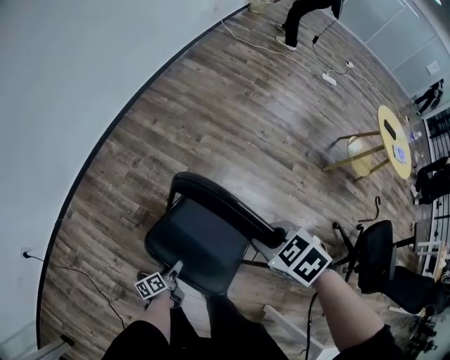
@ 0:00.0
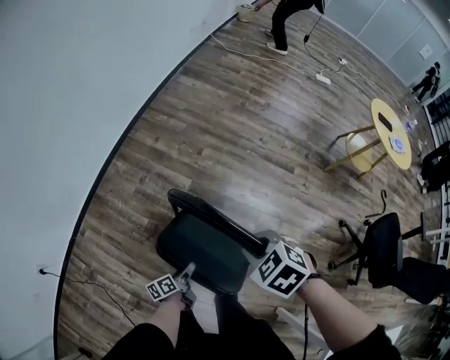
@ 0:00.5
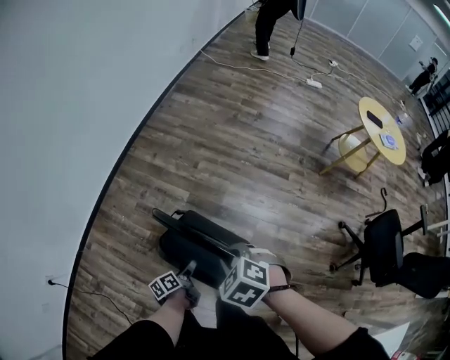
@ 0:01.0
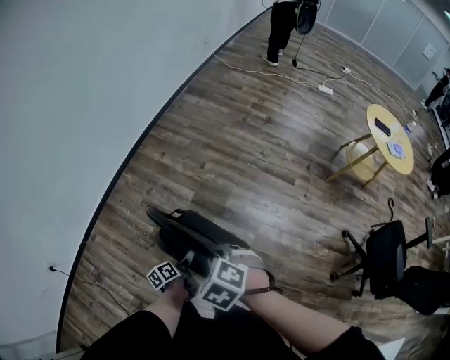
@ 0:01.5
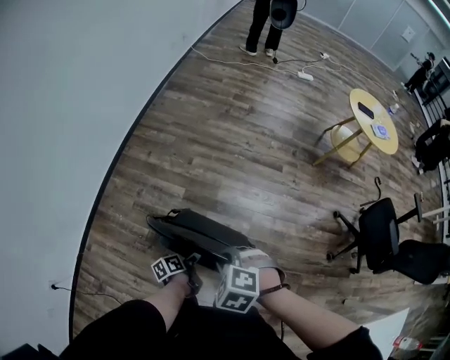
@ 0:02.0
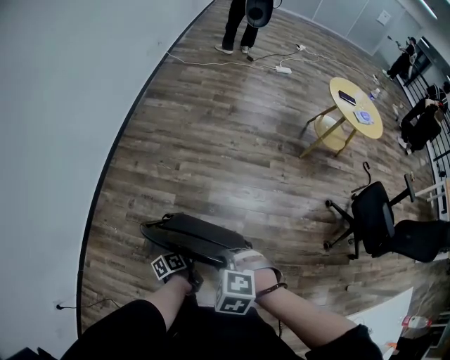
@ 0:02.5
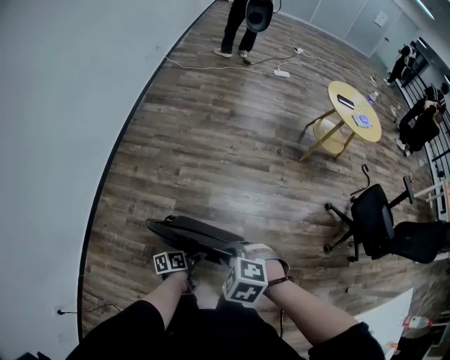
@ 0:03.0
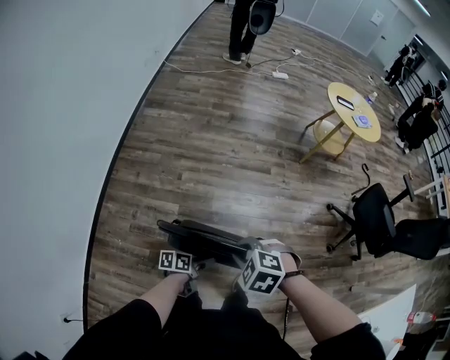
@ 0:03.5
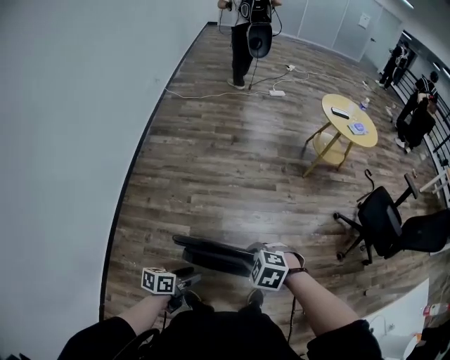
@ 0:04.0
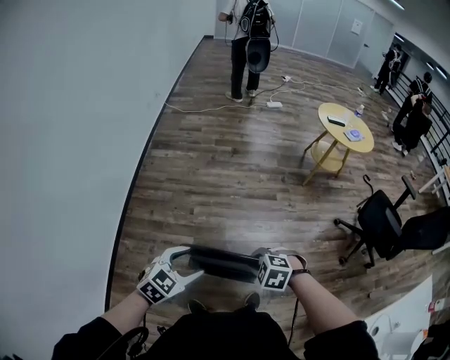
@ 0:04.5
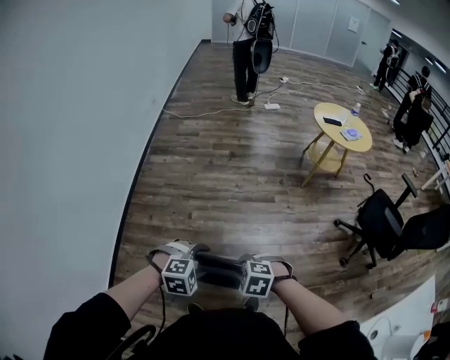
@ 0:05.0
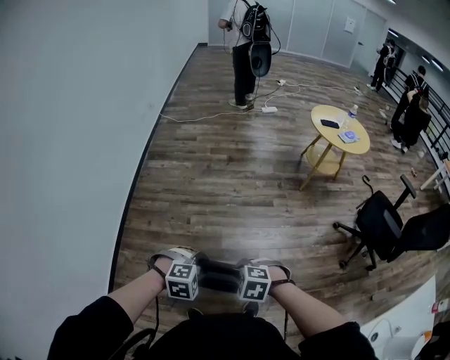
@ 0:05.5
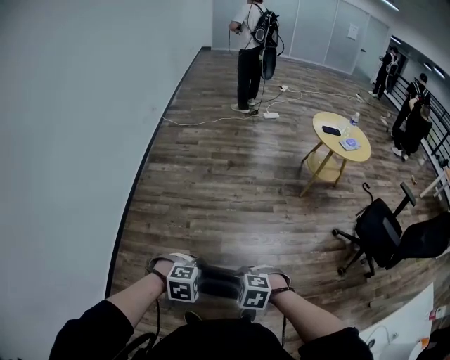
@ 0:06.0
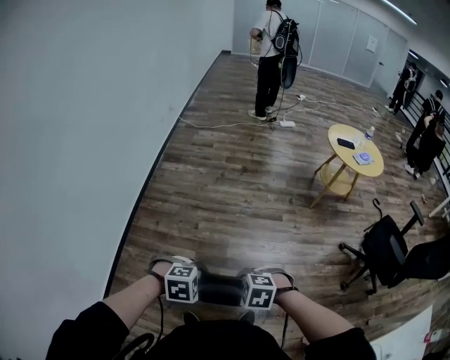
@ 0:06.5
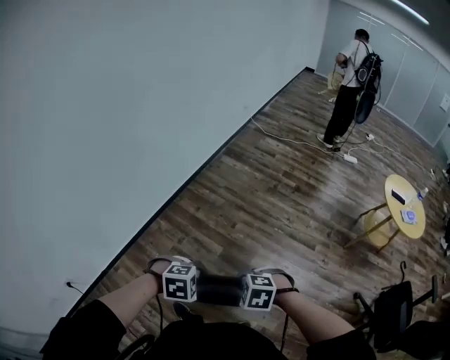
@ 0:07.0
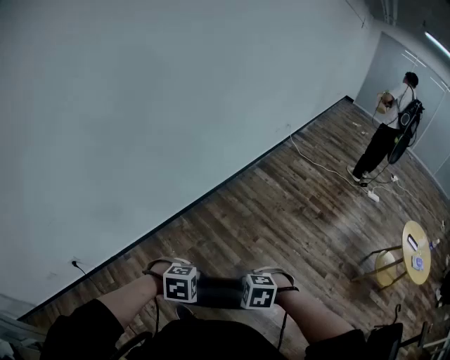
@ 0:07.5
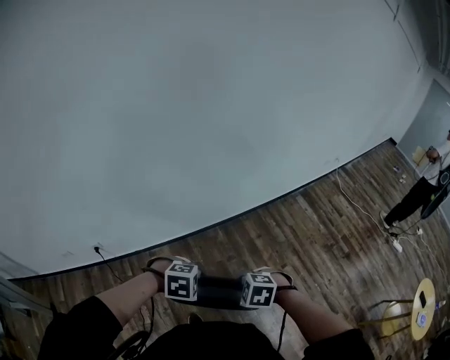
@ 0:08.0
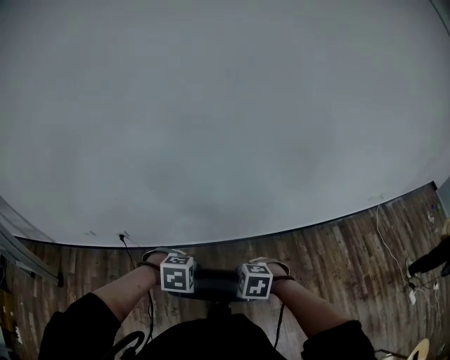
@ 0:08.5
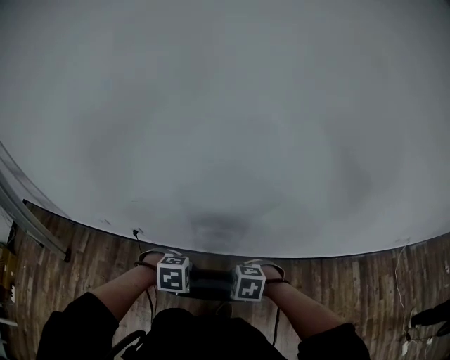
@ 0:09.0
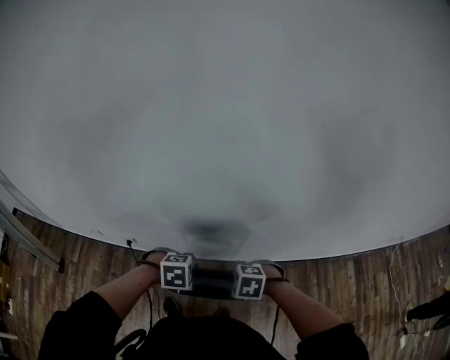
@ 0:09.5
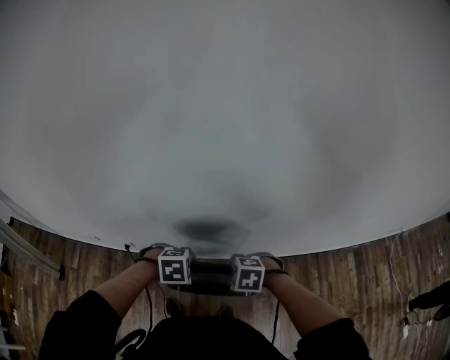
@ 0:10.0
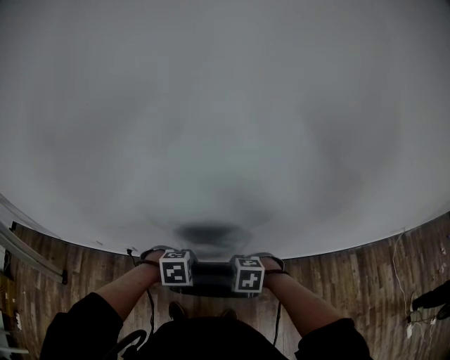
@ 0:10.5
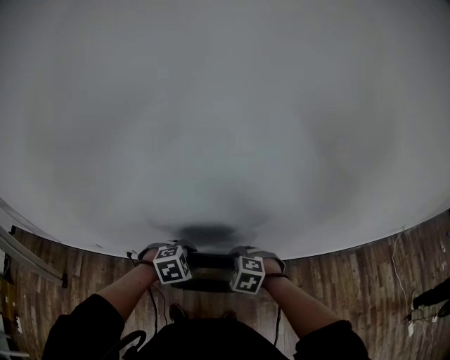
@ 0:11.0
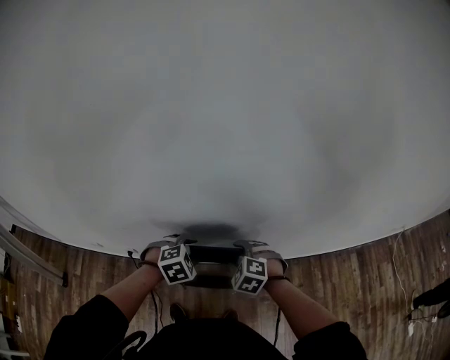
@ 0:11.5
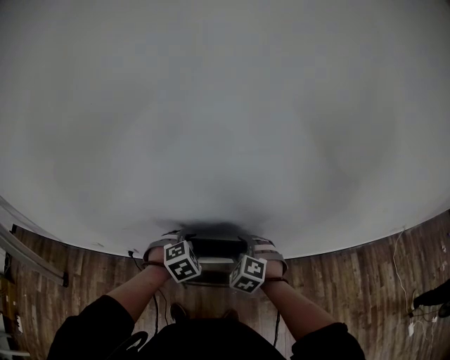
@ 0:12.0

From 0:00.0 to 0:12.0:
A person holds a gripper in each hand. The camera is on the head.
From 0:00.0 to 0:02.0: The right gripper moves backward and to the left, about 10 cm, while the left gripper moves upward, to the right and forward, roughly 20 cm.
From 0:02.0 to 0:04.0: The right gripper is displaced forward by roughly 10 cm, while the left gripper moves upward and to the left, about 15 cm, and rotates around the line of its fingers by approximately 50 degrees, clockwise from behind.
From 0:04.0 to 0:06.0: The left gripper goes roughly 10 cm upward, and twists roughly 90 degrees clockwise, seen from behind.
From 0:06.0 to 0:08.0: The right gripper changes place by roughly 40 cm, and rolls counterclockwise, seen from behind, by some 60 degrees, while the left gripper moves about 40 cm, and rotates around the line of its fingers by some 60 degrees, counterclockwise from behind.
From 0:08.0 to 0:10.0: The left gripper changes place by approximately 35 cm, and rotates approximately 30 degrees, while the right gripper ends up approximately 35 cm from where it was, and changes its angle by approximately 30 degrees.
From 0:10.0 to 0:12.0: The right gripper moves about 10 cm, turns by approximately 40 degrees, and opens its fingers; the left gripper shifts by about 10 cm, and swivels some 30 degrees.

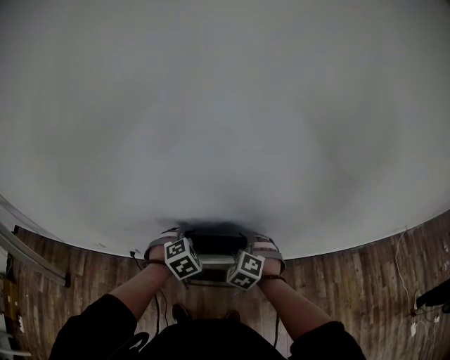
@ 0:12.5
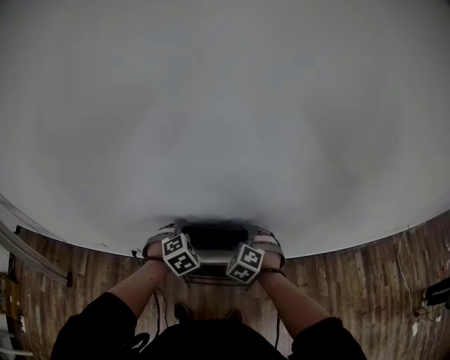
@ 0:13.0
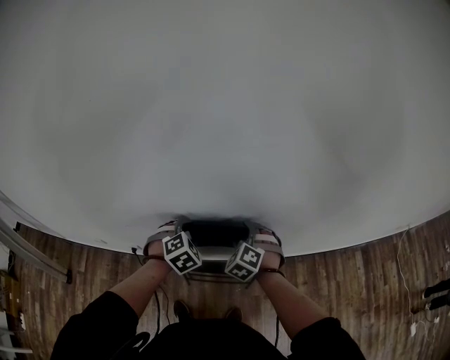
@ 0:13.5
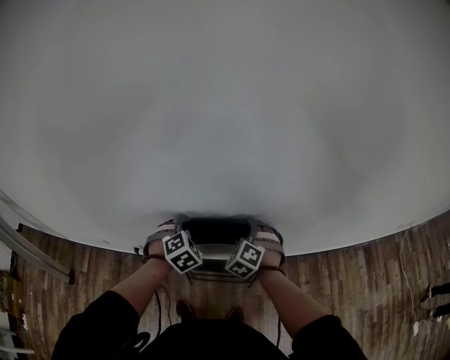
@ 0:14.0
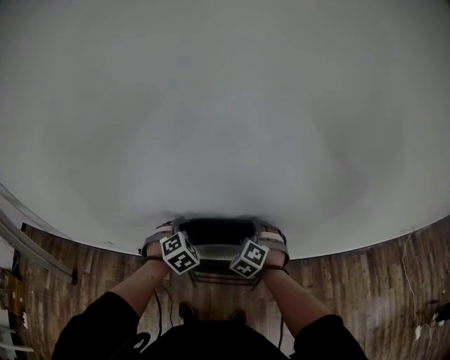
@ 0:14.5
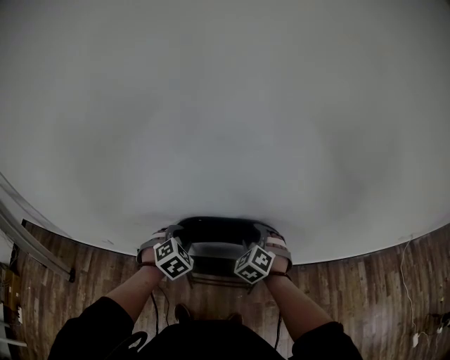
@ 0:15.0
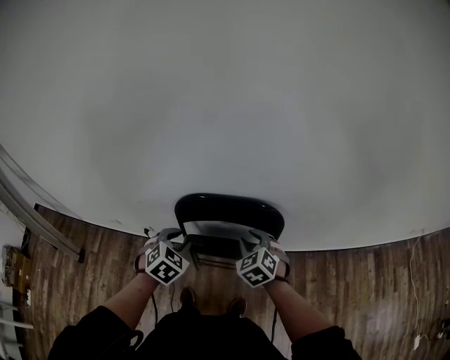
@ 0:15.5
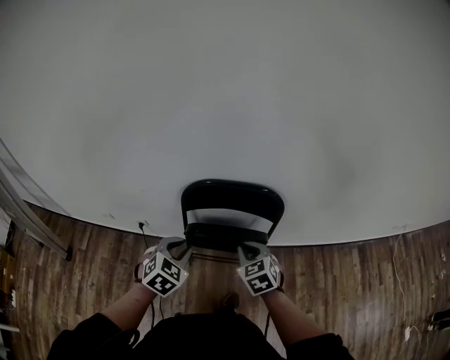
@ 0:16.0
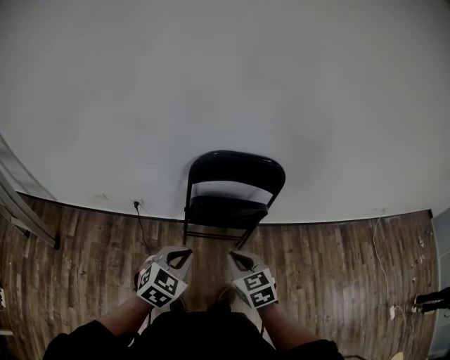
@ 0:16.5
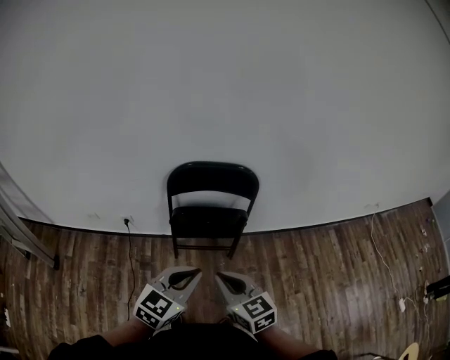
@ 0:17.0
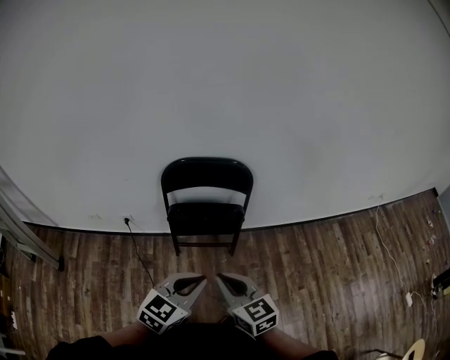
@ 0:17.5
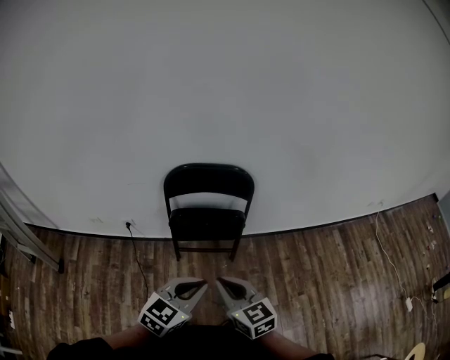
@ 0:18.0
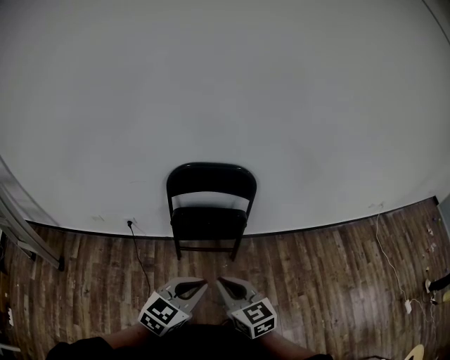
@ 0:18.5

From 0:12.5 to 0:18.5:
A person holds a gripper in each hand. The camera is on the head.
From 0:12.5 to 0:14.5: The left gripper changes place by some 5 cm.
From 0:14.5 to 0:16.5: Both grippers travel together backward, about 35 cm. The right gripper rolls clockwise, seen from behind, by approximately 40 degrees, and closes up. Meanwhile the left gripper swivels roughly 30 degrees.
From 0:16.5 to 0:18.5: The right gripper moves backward, to the right and upward, some 15 cm, and turns by approximately 20 degrees. The left gripper travels to the right, backward and upward by some 20 cm.

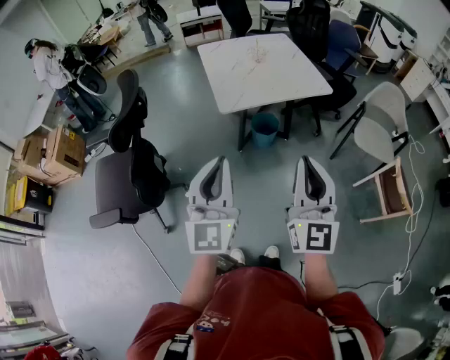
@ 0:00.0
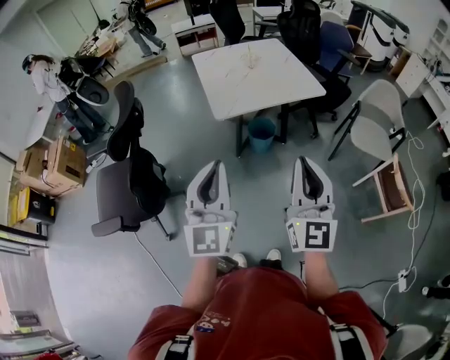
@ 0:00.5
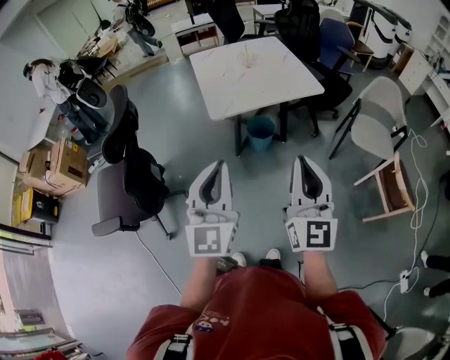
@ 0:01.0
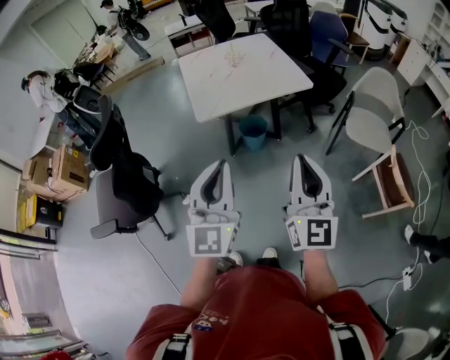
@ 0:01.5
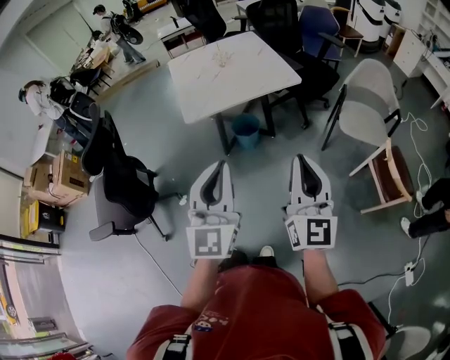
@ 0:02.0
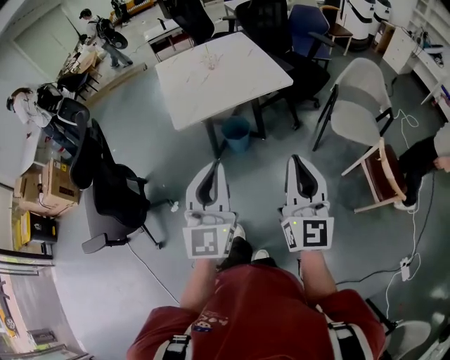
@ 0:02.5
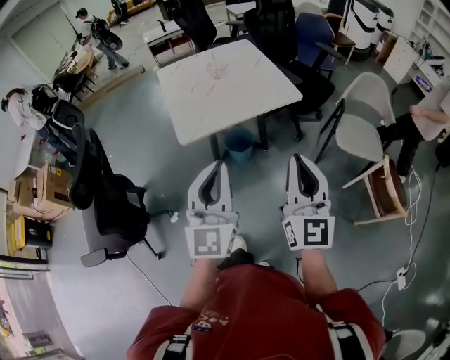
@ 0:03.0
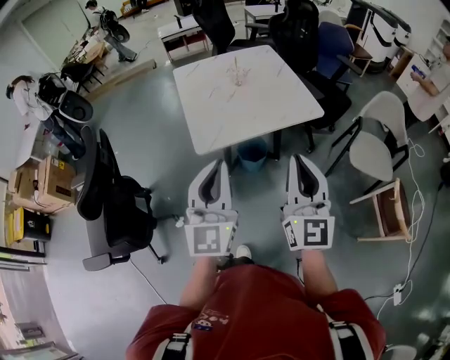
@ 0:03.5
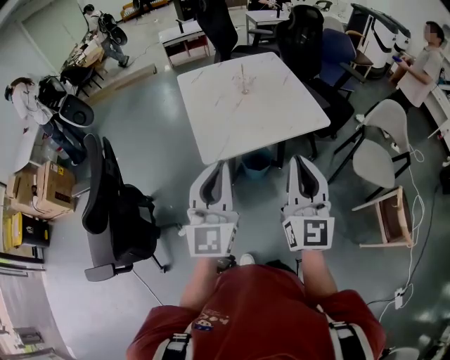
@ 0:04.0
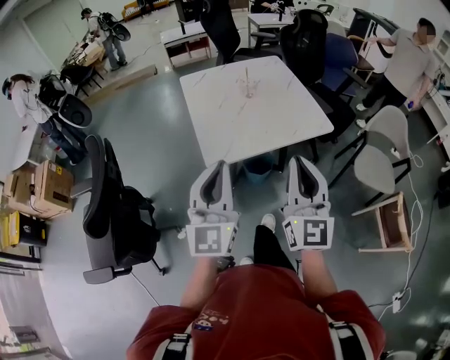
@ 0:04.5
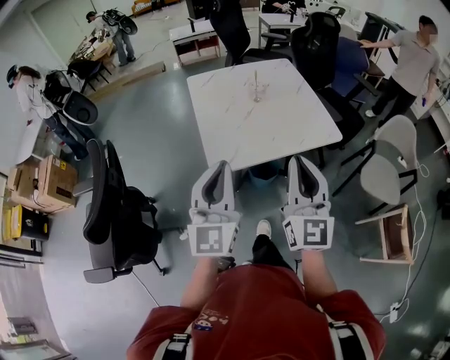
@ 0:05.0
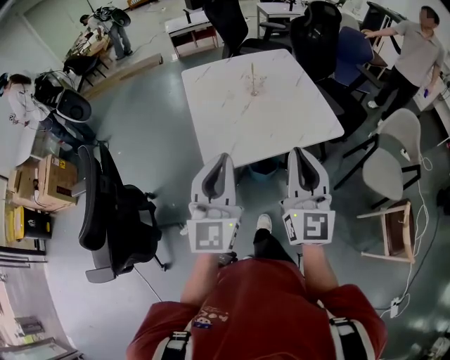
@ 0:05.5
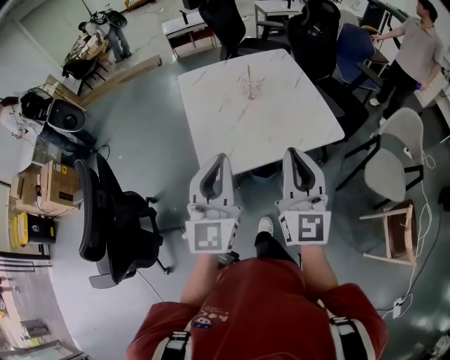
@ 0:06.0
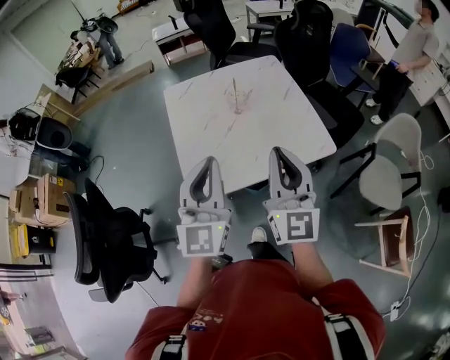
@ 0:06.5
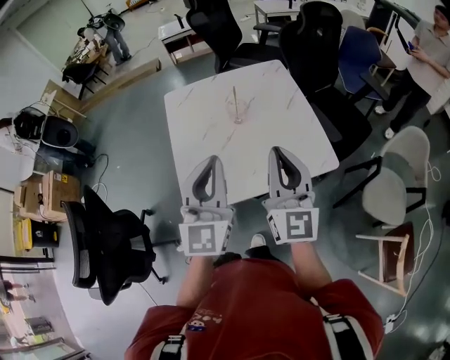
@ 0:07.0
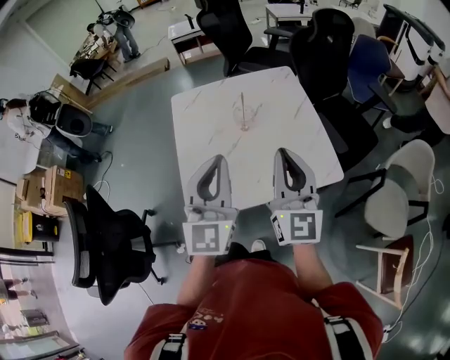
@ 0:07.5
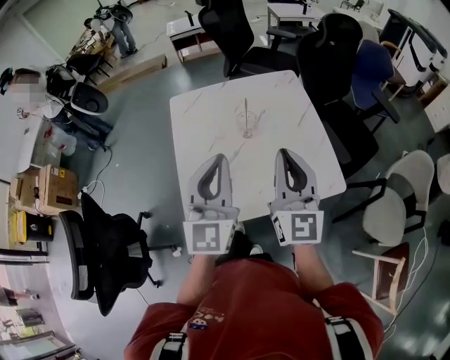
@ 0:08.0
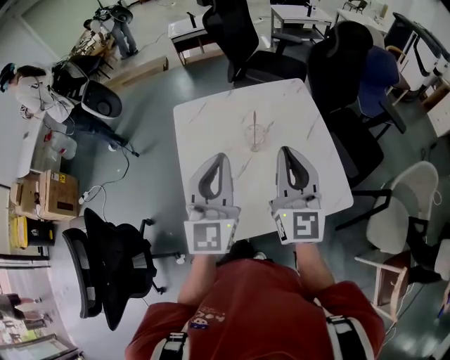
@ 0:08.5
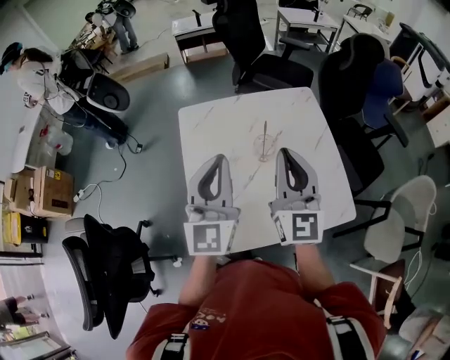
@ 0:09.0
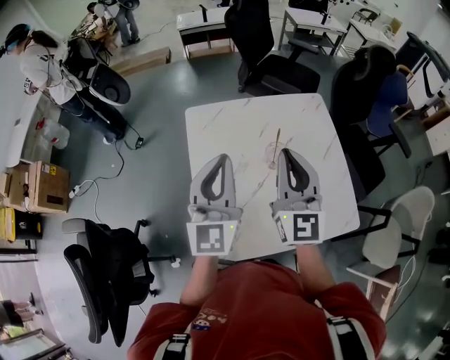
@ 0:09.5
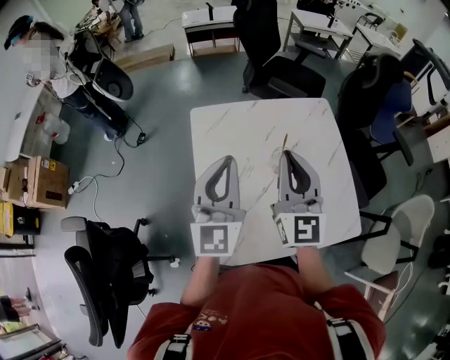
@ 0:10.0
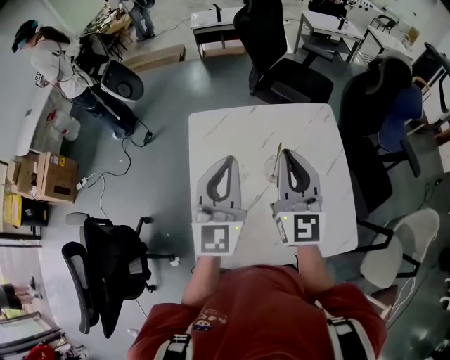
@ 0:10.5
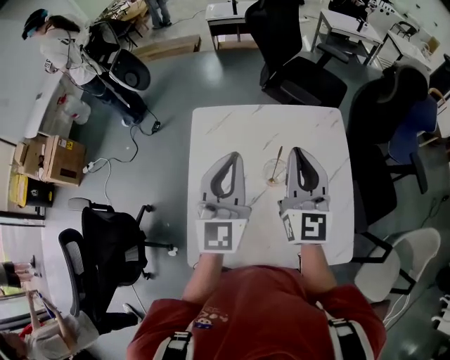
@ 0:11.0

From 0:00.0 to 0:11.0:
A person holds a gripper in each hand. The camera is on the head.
From 0:00.0 to 0:02.0: The two grippers go some 20 cm to the right.
From 0:02.0 to 0:03.5: The grippers both shift forward and to the left by approximately 25 cm.
From 0:03.5 to 0:05.5: Both grippers move forward, some 15 cm.
From 0:05.5 to 0:07.5: The left gripper moves forward and to the right, roughly 25 cm, while the right gripper heads forward, covering roughly 20 cm.
From 0:07.5 to 0:09.0: Both grippers move forward and to the left, about 20 cm.
From 0:09.0 to 0:11.0: The grippers both shift forward by approximately 15 cm.
